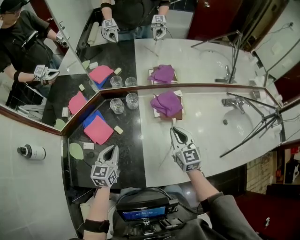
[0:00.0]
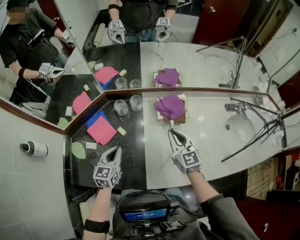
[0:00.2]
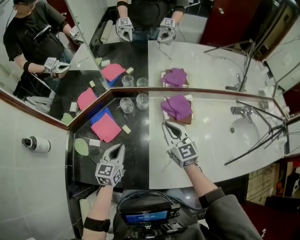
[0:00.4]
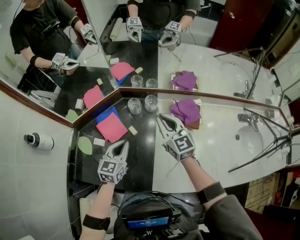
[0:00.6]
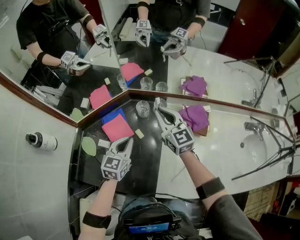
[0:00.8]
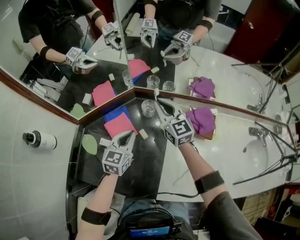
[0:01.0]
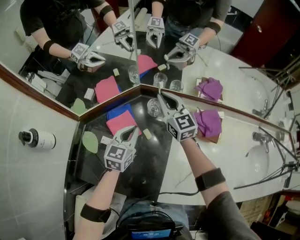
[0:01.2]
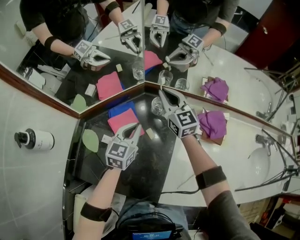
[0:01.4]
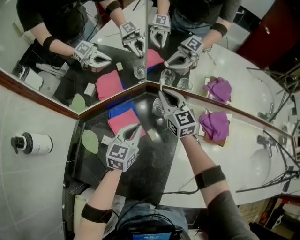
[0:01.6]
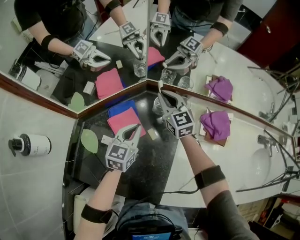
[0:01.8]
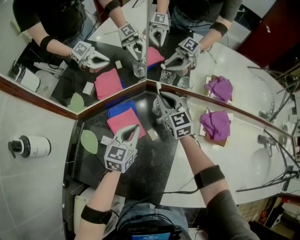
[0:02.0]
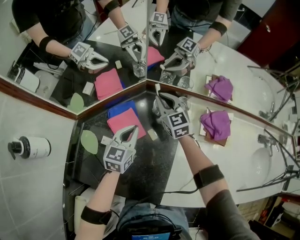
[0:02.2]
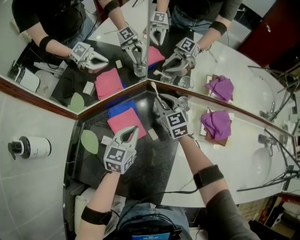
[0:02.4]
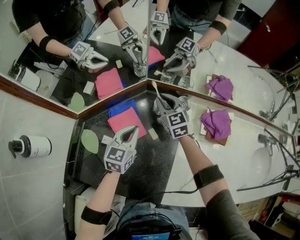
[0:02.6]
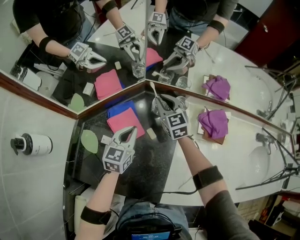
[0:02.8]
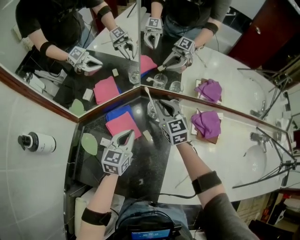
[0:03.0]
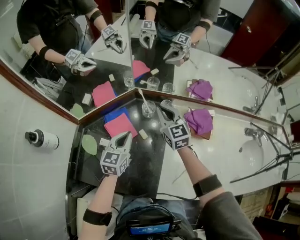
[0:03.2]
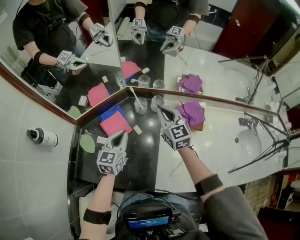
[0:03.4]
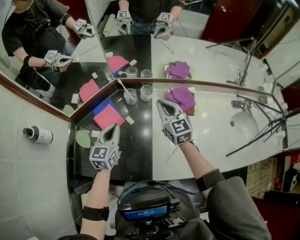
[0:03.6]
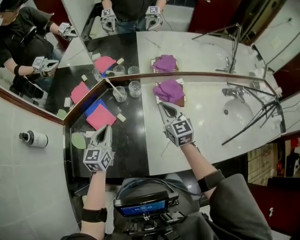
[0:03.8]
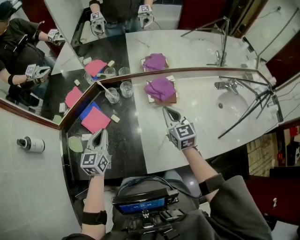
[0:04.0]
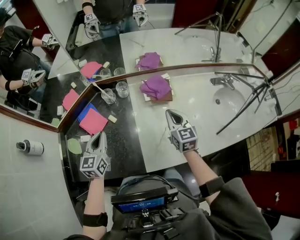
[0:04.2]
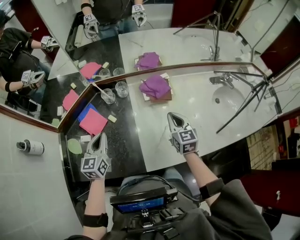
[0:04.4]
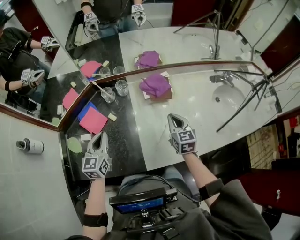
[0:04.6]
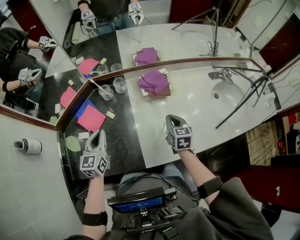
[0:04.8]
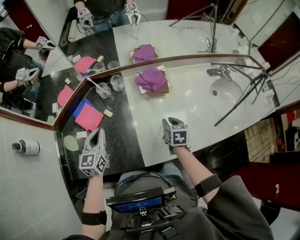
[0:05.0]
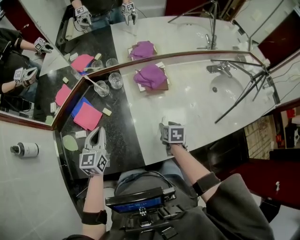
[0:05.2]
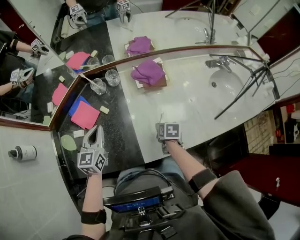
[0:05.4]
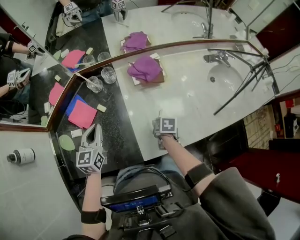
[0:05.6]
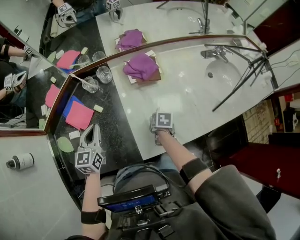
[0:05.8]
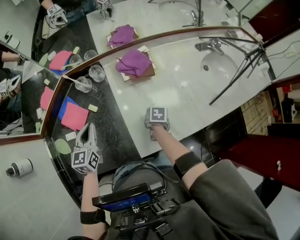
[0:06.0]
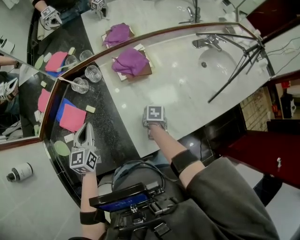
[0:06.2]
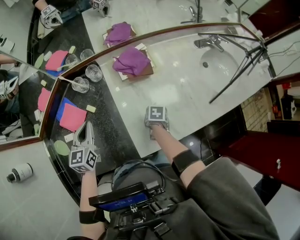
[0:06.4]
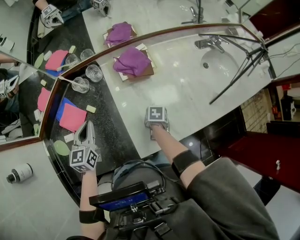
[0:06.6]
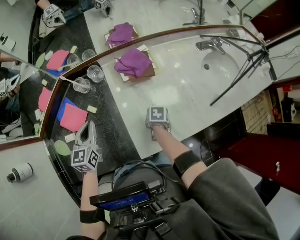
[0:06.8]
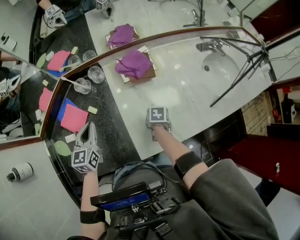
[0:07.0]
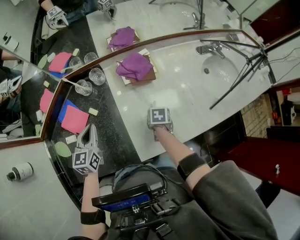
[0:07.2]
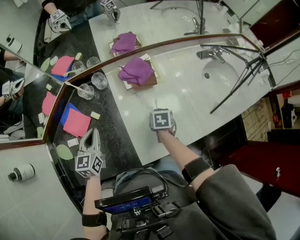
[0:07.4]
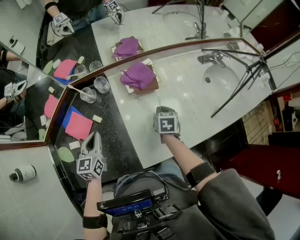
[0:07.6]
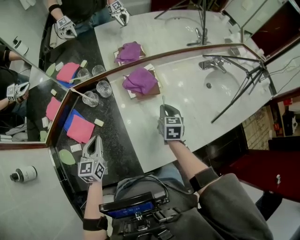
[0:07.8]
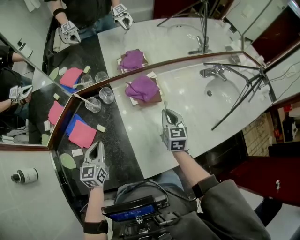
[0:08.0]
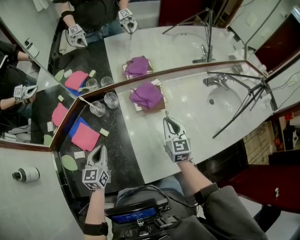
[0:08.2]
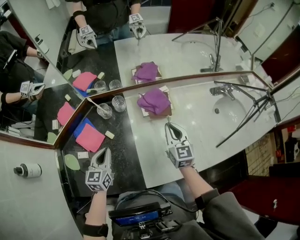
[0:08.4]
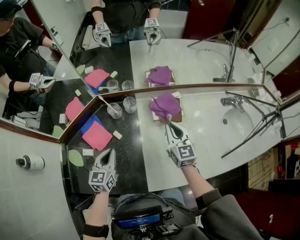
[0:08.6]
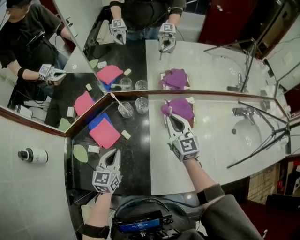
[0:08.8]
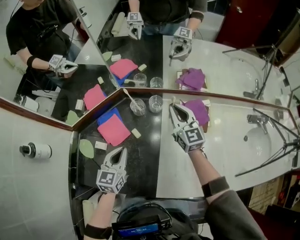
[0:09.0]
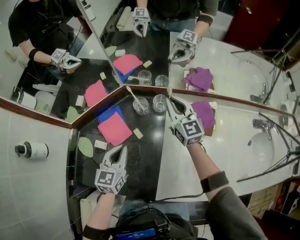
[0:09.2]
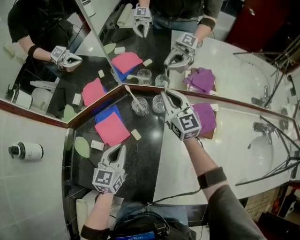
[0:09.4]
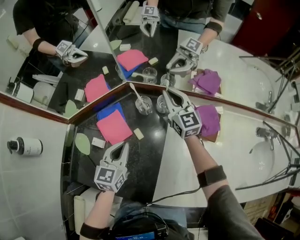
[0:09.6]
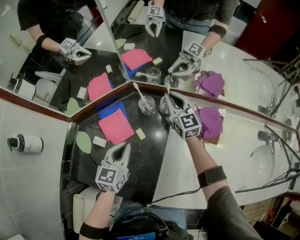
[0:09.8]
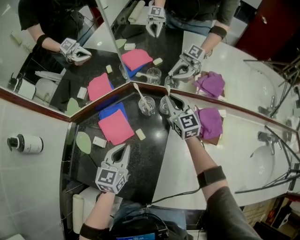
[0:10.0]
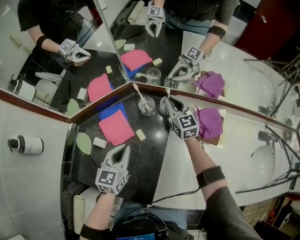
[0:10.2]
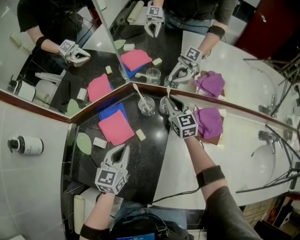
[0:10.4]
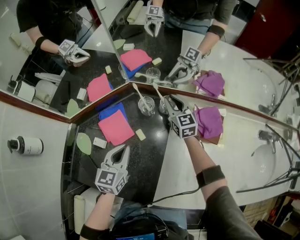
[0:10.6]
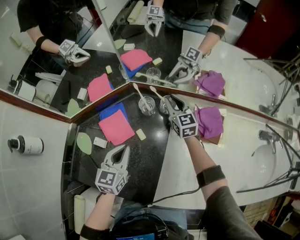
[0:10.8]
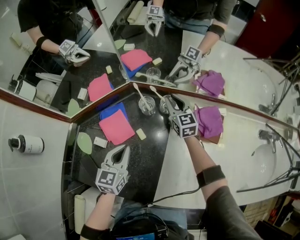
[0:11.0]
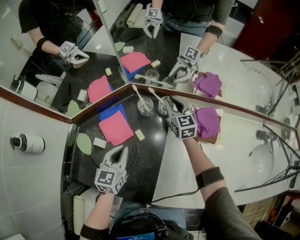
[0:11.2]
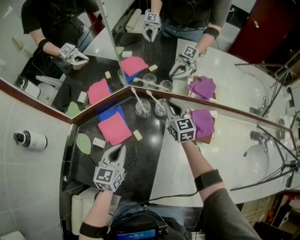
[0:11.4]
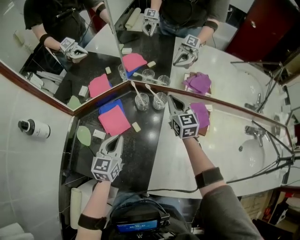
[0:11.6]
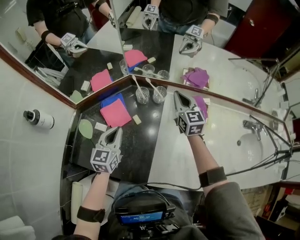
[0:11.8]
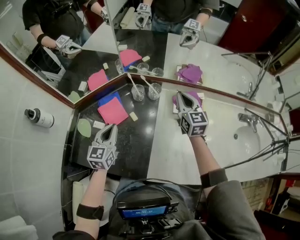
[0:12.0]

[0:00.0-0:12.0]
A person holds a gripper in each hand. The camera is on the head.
0:00.0 to 0:01.6: The left gripper is displaced forward and to the left by roughly 15 cm. Meanwhile the right gripper moves forward and to the left, roughly 40 cm, and swivels some 30 degrees.
0:03.0 to 0:04.4: The right gripper is displaced to the right and backward by roughly 40 cm, and changes its angle by approximately 30 degrees, while the left gripper goes some 15 cm backward, upward and to the right.
0:04.4 to 0:06.0: The right gripper moves downward, roughly 25 cm, angles its fingers downward, by approximately 50 degrees, and opens up. The left gripper moves approximately 5 cm.
0:06.0 to 0:07.6: The right gripper travels upward by approximately 10 cm, changes its angle by roughly 30 degrees, and closes up.
0:07.6 to 0:09.0: The right gripper changes place by roughly 30 cm, and points its fingers approximately 40 degrees further upward.
0:09.0 to 0:10.4: The right gripper is displaced downward, forward and to the left by roughly 15 cm.
0:10.4 to 0:12.0: The right gripper travels upward, backward and to the right by some 20 cm. The left gripper is displaced upward by roughly 5 cm.

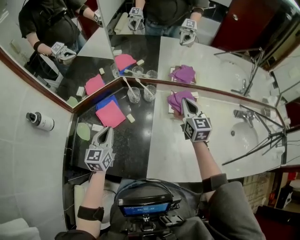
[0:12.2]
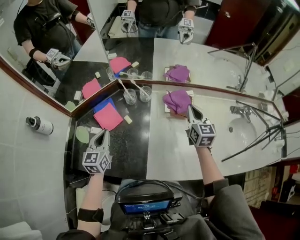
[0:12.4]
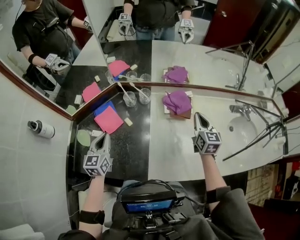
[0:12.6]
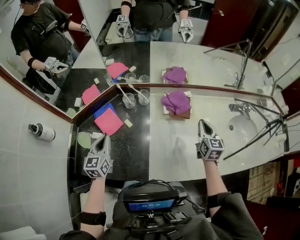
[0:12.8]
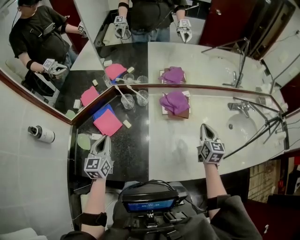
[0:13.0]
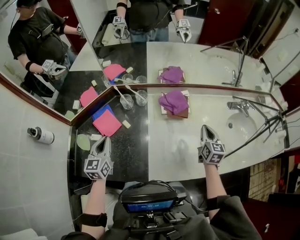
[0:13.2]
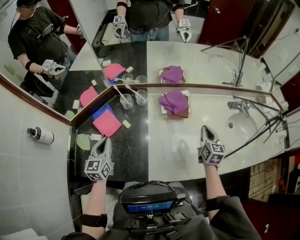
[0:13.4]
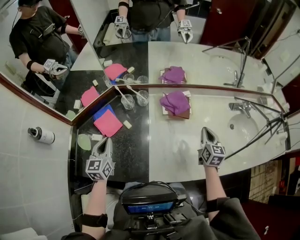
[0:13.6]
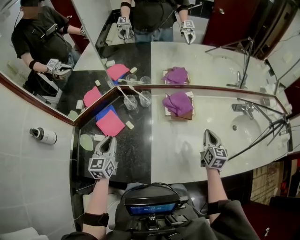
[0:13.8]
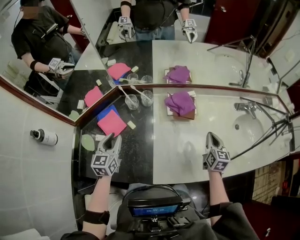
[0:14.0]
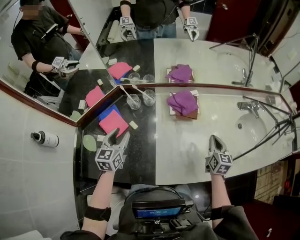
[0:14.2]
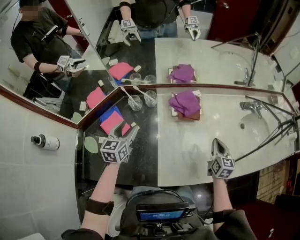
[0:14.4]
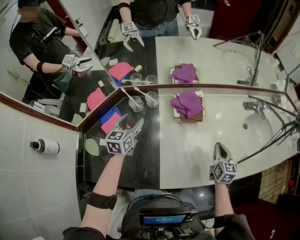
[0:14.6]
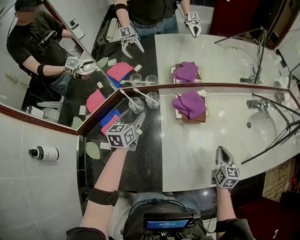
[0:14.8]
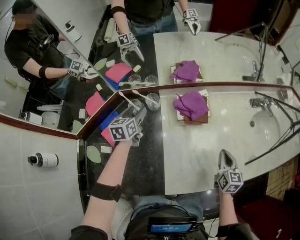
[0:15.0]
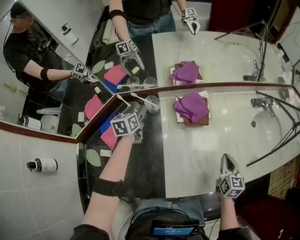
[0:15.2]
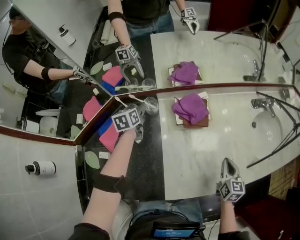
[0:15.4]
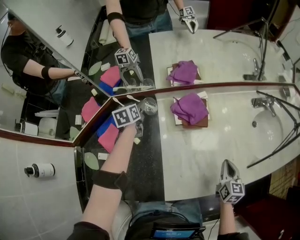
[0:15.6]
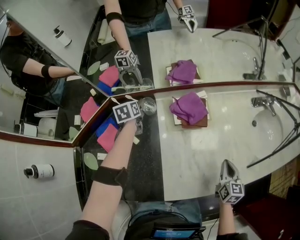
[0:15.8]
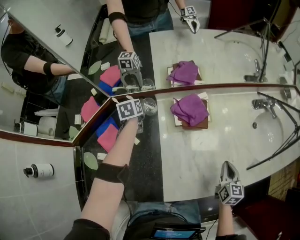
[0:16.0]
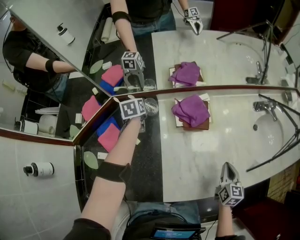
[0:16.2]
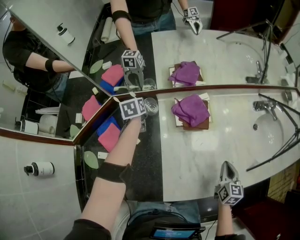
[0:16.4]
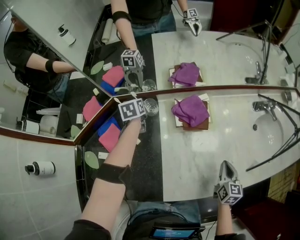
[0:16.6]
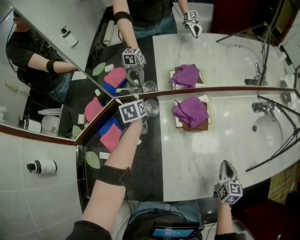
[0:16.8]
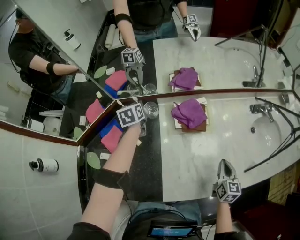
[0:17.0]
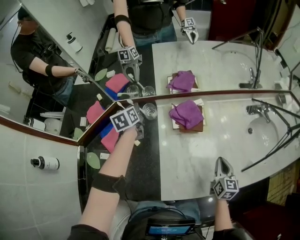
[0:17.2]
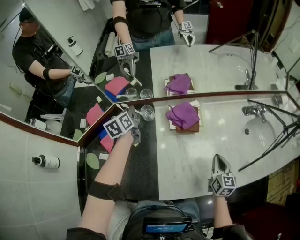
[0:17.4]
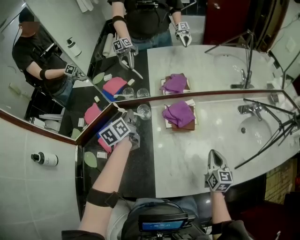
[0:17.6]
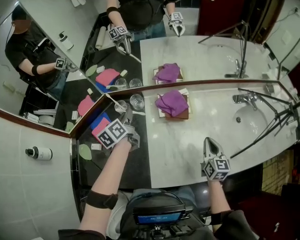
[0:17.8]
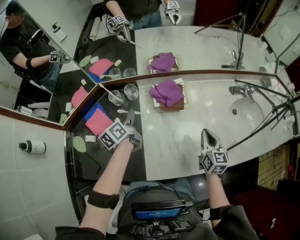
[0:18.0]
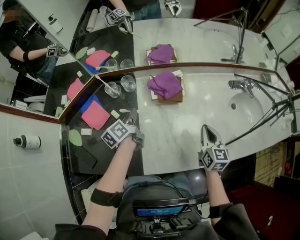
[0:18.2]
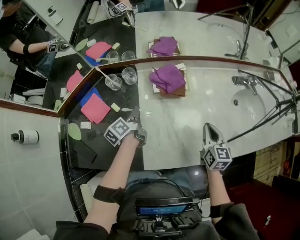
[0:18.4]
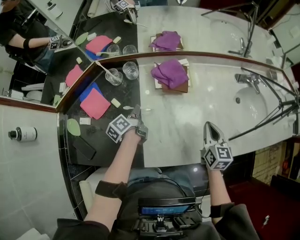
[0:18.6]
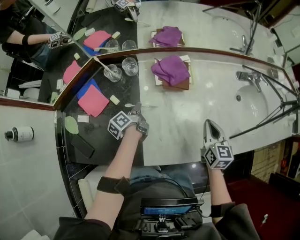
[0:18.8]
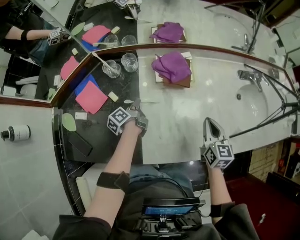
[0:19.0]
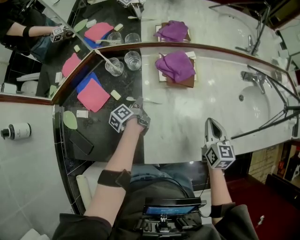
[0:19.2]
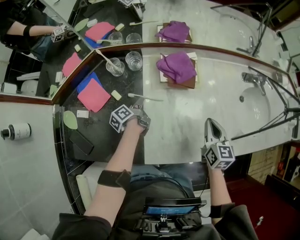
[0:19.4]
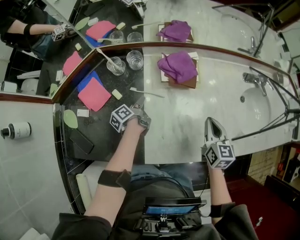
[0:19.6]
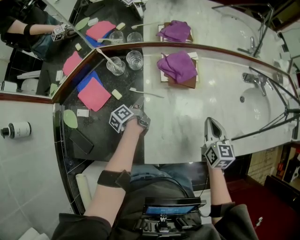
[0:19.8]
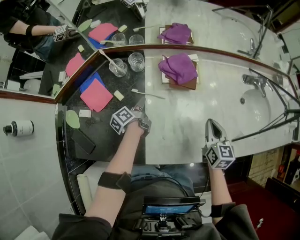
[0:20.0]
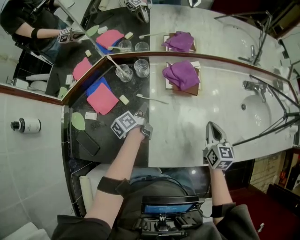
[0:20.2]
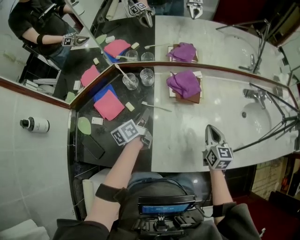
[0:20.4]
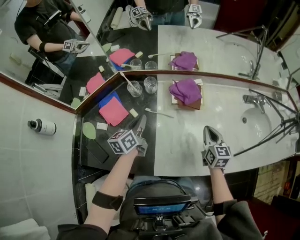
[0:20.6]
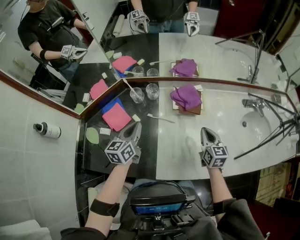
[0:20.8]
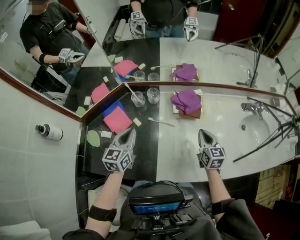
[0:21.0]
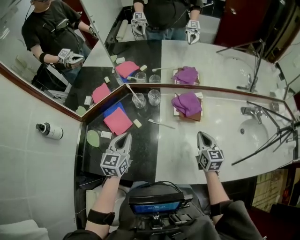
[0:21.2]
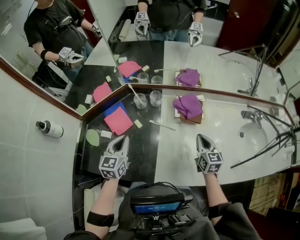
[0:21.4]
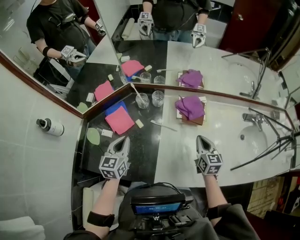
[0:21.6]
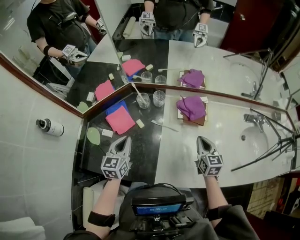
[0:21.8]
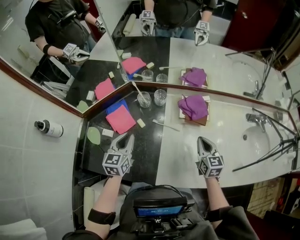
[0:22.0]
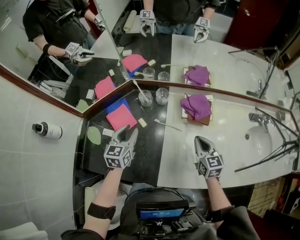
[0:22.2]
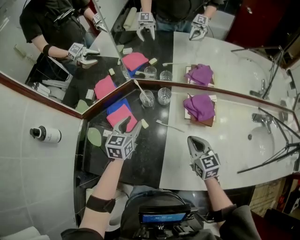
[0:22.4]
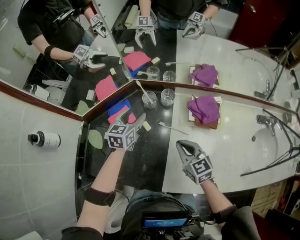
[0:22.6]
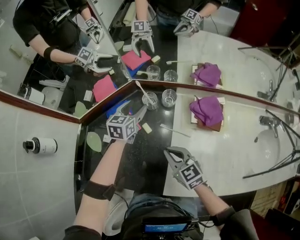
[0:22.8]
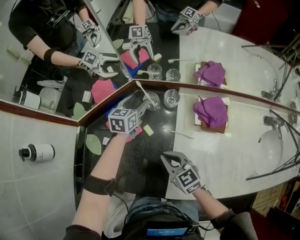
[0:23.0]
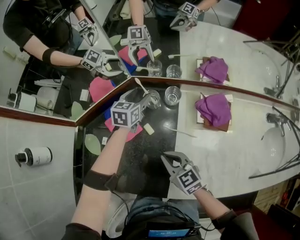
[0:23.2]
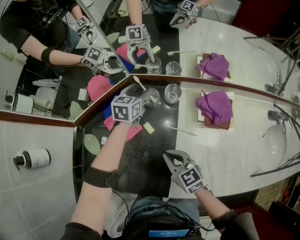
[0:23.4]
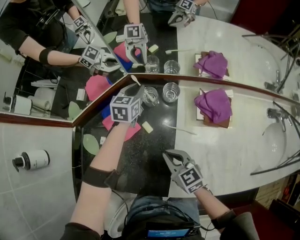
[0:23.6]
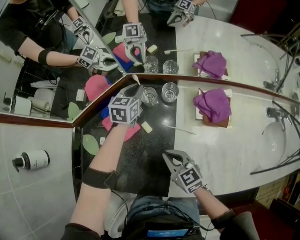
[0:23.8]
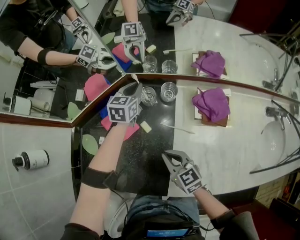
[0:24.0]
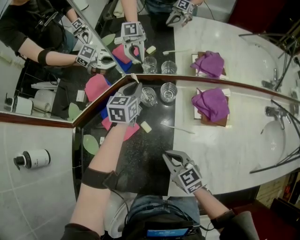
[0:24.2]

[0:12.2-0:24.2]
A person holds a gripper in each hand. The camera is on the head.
0:12.2 to 0:13.8: The right gripper shifts some 25 cm to the right, backward and downward, and turns by about 20 degrees.
0:13.8 to 0:15.2: The right gripper is displaced downward and backward by roughly 10 cm, while the left gripper moves forward, approximately 25 cm, and opens up.
0:15.2 to 0:16.6: The left gripper heads forward, covering some 5 cm, and closes up.
0:16.6 to 0:18.2: The right gripper is displaced upward by some 5 cm. Meanwhile the left gripper shifts about 25 cm backward and to the right, and turns by about 40 degrees.
0:18.2 to 0:19.8: The left gripper moves downward, roughly 15 cm, changes its angle by approximately 30 degrees, and opens up.
0:19.8 to 0:21.2: The right gripper travels to the left by roughly 5 cm, while the left gripper goes about 25 cm upward and to the left, rolls clockwise, seen from behind, by some 80 degrees, and closes.
0:21.2 to 0:22.6: The right gripper heads to the left, covering about 20 cm, and swivels some 30 degrees. Meanwhile the left gripper moves forward and downward, roughly 20 cm, and opens up.
0:22.6 to 0:24.2: The right gripper moves to the left and downward, approximately 10 cm; the left gripper shifts approximately 15 cm forward, and closes its fingers.
